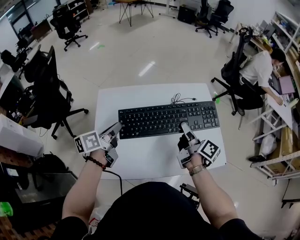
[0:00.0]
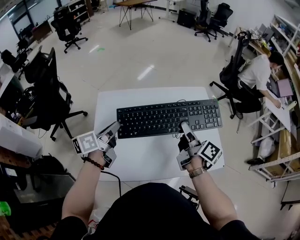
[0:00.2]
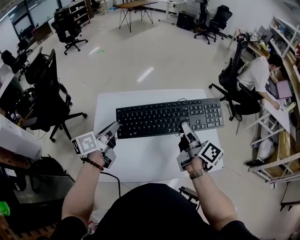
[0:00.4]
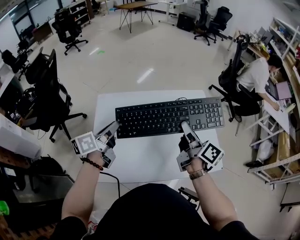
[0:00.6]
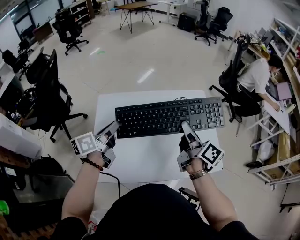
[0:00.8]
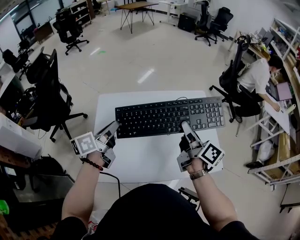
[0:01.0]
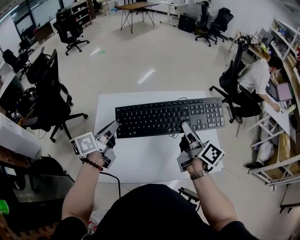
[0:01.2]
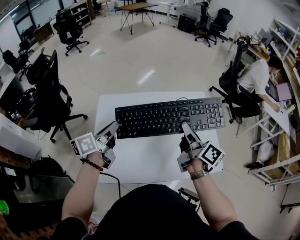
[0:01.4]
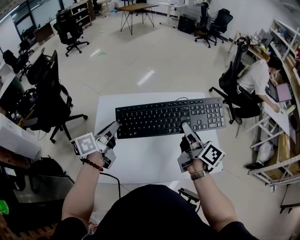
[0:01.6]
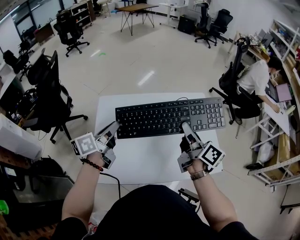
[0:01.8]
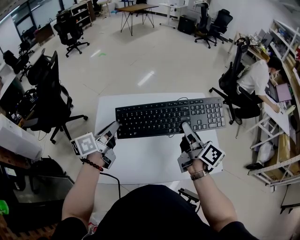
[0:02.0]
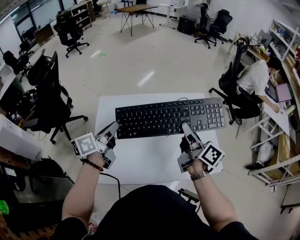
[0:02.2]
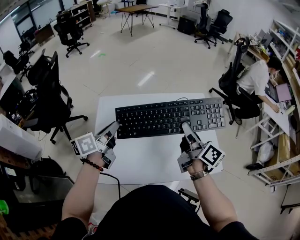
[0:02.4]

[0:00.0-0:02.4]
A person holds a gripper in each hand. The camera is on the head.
0:00.0 to 0:01.2: The right gripper goes about 10 cm upward.
0:01.2 to 0:02.4: Neither gripper changes place.

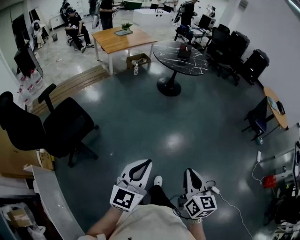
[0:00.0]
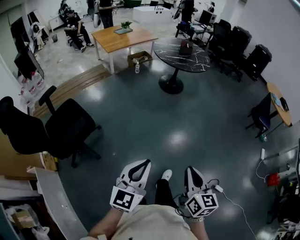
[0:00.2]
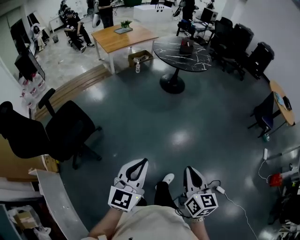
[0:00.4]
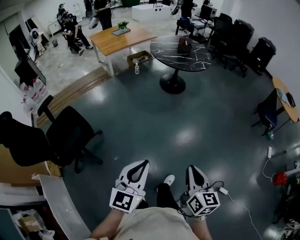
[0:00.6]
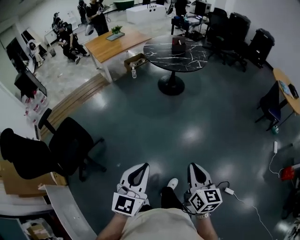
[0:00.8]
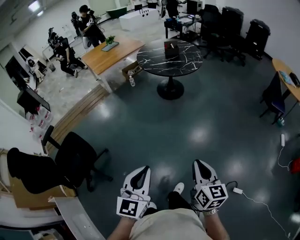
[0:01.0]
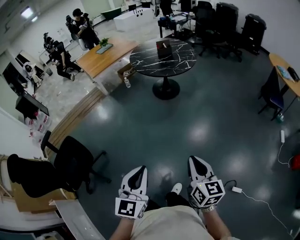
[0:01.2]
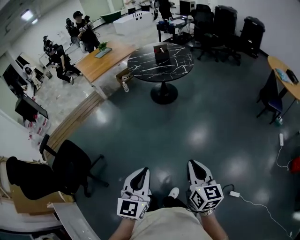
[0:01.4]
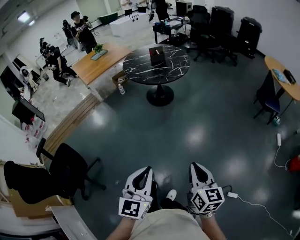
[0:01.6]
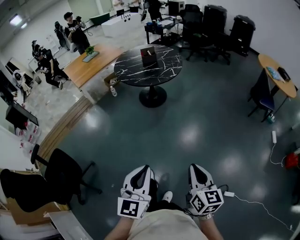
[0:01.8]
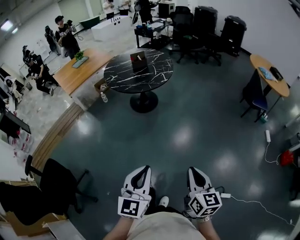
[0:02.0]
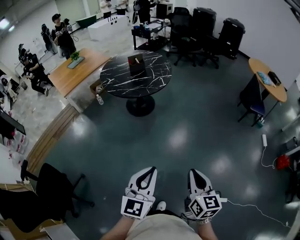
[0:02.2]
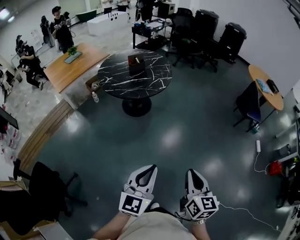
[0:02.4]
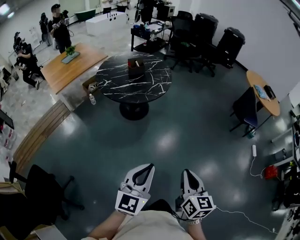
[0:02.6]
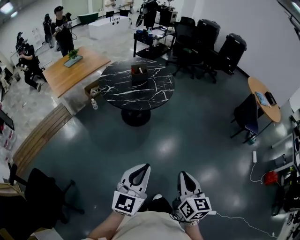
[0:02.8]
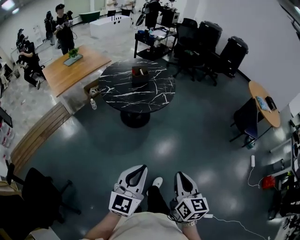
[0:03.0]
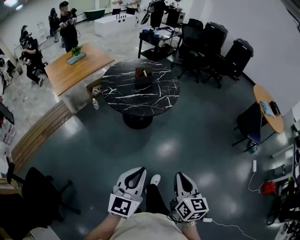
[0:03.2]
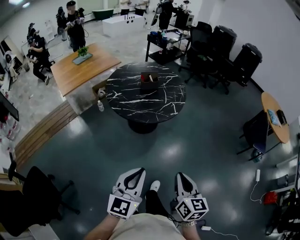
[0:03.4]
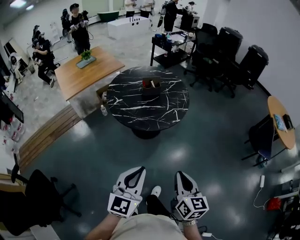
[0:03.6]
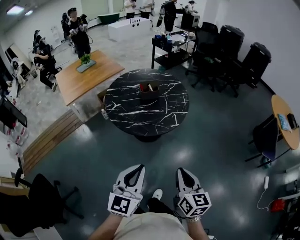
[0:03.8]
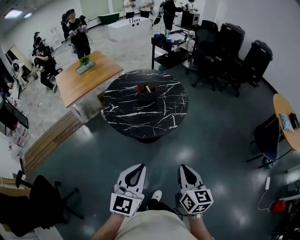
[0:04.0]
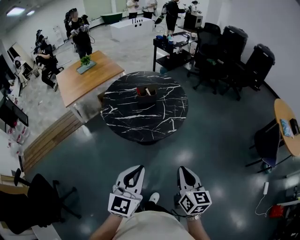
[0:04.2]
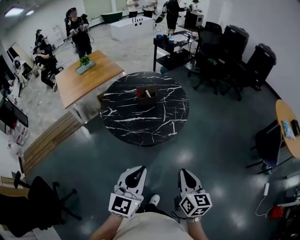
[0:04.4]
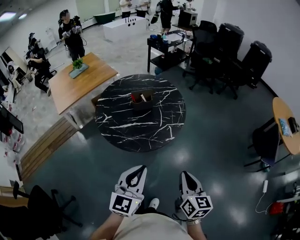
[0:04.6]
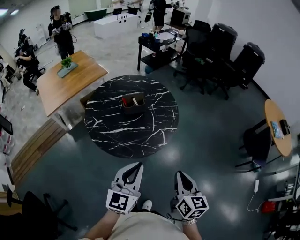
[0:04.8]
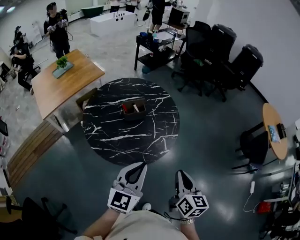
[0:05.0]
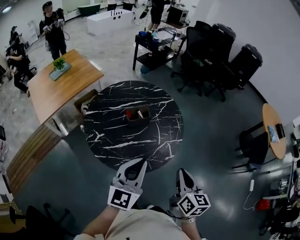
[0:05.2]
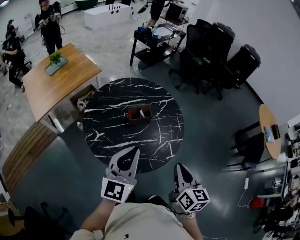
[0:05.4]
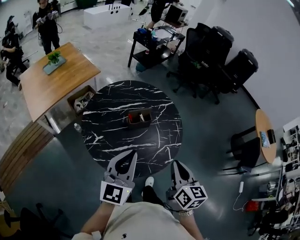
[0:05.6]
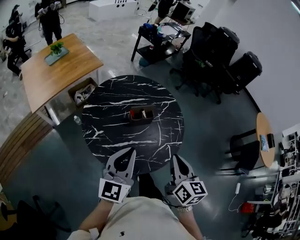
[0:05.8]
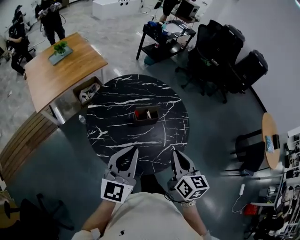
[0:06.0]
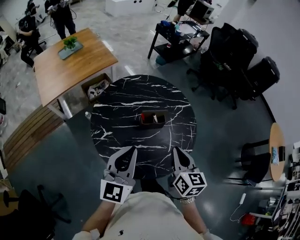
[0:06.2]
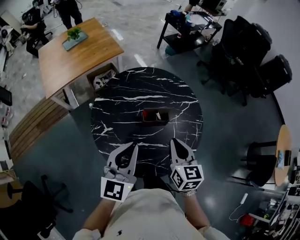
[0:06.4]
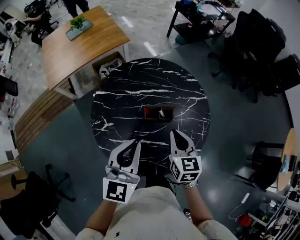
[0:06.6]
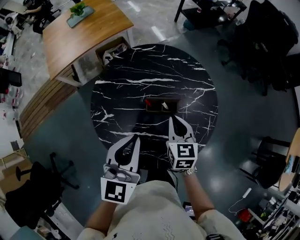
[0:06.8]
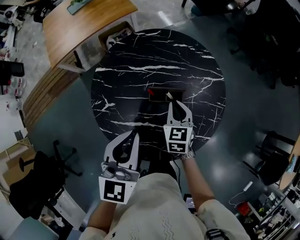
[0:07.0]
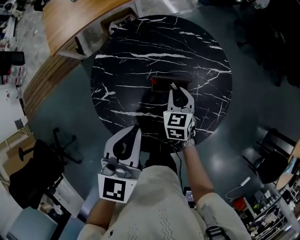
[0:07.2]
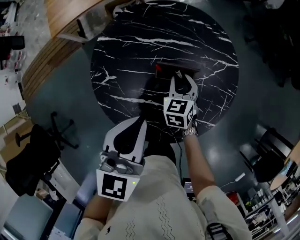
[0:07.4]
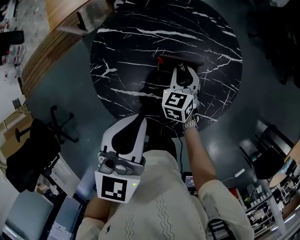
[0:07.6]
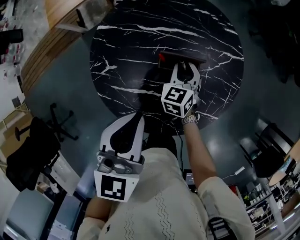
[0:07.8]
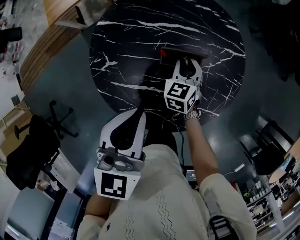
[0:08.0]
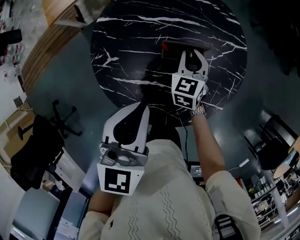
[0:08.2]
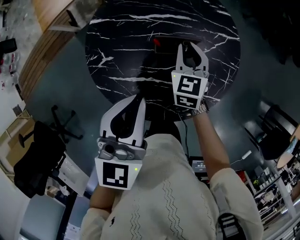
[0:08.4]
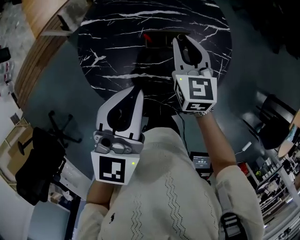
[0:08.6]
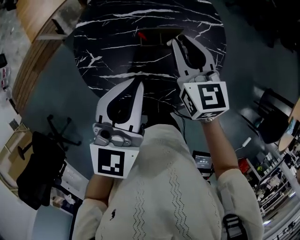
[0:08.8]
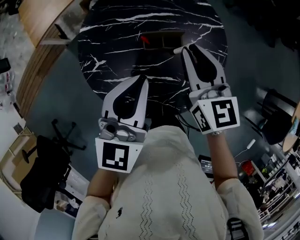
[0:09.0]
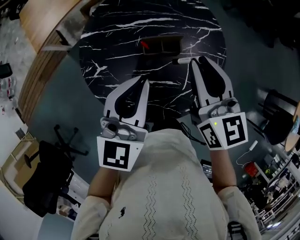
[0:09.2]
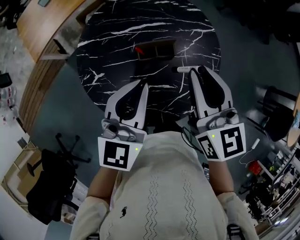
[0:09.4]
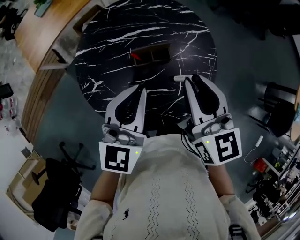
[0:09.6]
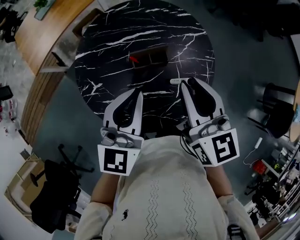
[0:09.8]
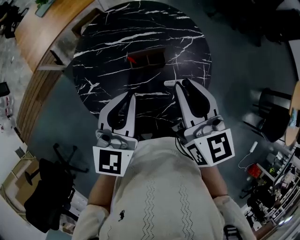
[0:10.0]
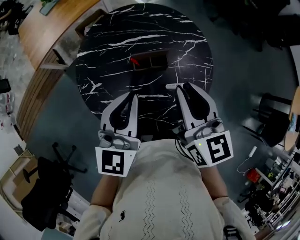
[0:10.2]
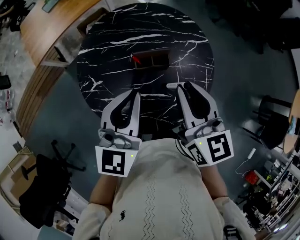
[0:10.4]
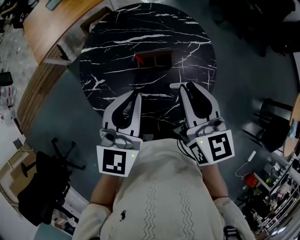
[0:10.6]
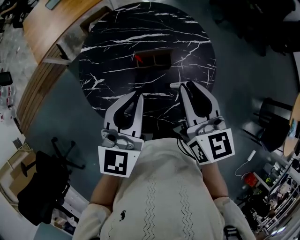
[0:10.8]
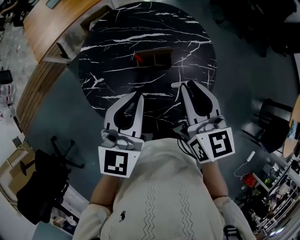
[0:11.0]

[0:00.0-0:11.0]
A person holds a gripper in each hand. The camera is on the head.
0:00.0 to 0:01.6: The grippers both shift forward and to the right by roughly 35 cm.
0:01.6 to 0:03.2: The grippers both shift forward by some 35 cm.
0:03.2 to 0:04.8: Both grippers travel together forward, about 40 cm.
0:04.8 to 0:06.2: Both grippers travel together forward and to the left, roughly 35 cm.
0:06.2 to 0:07.8: The right gripper shifts some 35 cm downward and forward, changes its angle by roughly 40 degrees, and opens its fingers; the left gripper shifts roughly 15 cm forward, downward and to the right, and swivels some 30 degrees.
0:07.8 to 0:09.4: The right gripper heads upward, covering roughly 25 cm, and rotates roughly 40 degrees.
0:09.4 to 0:11.0: The grippers stay close to where they were, moving slightly.

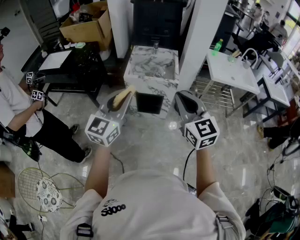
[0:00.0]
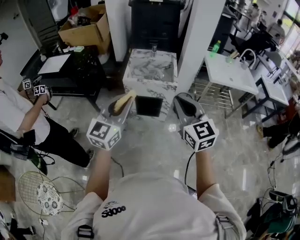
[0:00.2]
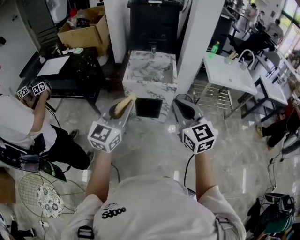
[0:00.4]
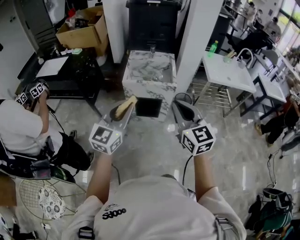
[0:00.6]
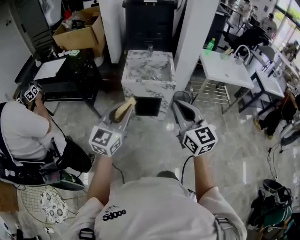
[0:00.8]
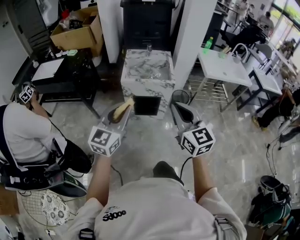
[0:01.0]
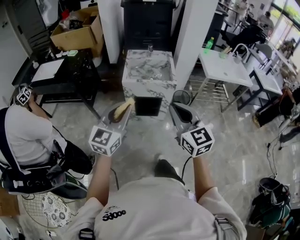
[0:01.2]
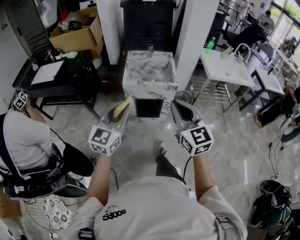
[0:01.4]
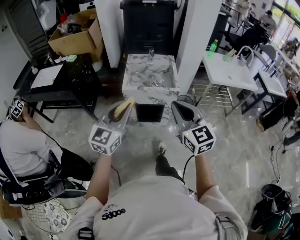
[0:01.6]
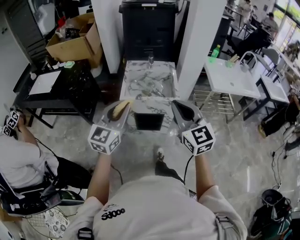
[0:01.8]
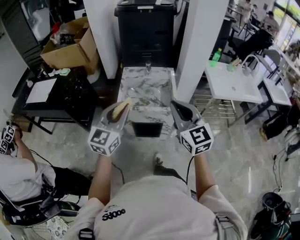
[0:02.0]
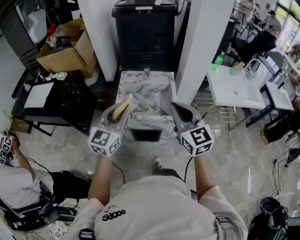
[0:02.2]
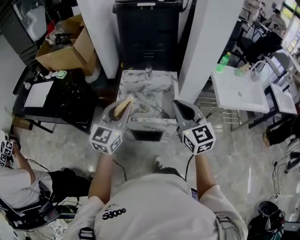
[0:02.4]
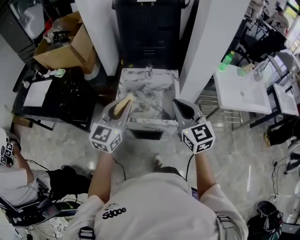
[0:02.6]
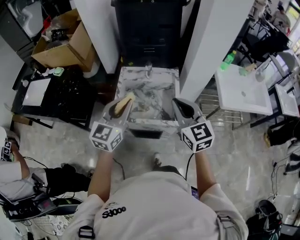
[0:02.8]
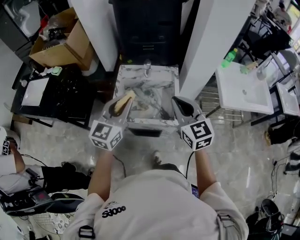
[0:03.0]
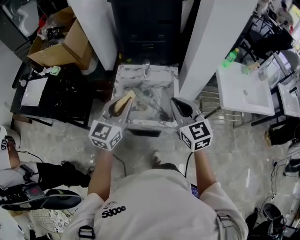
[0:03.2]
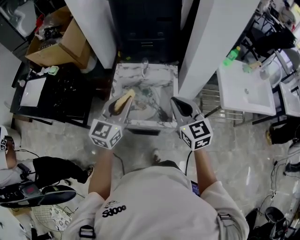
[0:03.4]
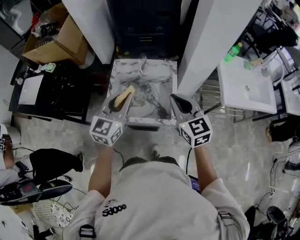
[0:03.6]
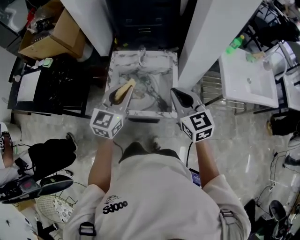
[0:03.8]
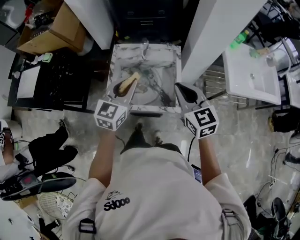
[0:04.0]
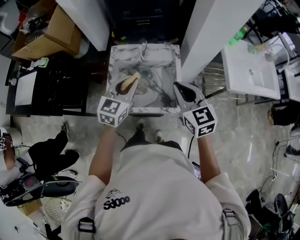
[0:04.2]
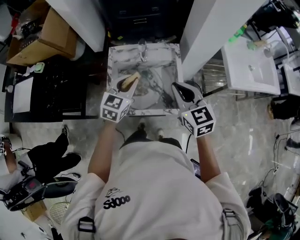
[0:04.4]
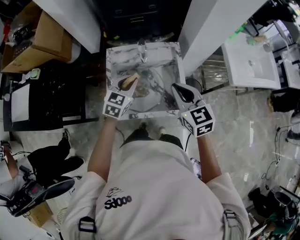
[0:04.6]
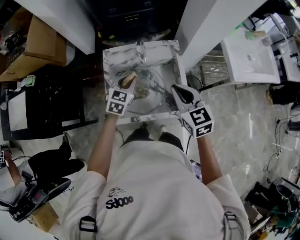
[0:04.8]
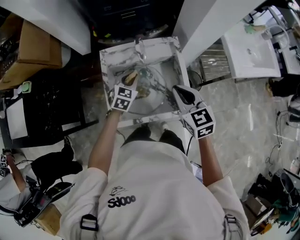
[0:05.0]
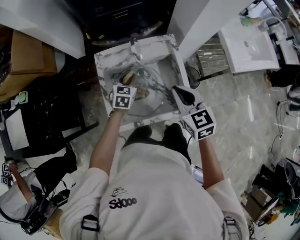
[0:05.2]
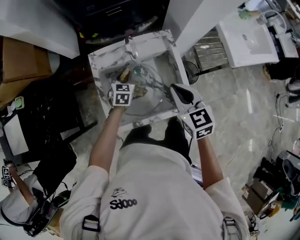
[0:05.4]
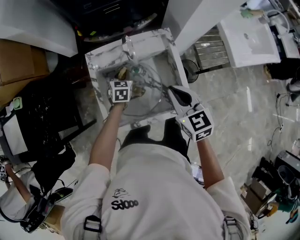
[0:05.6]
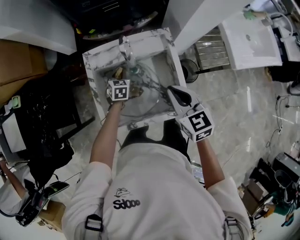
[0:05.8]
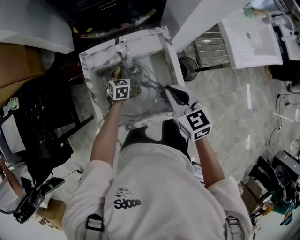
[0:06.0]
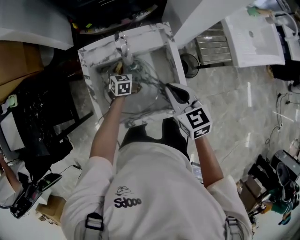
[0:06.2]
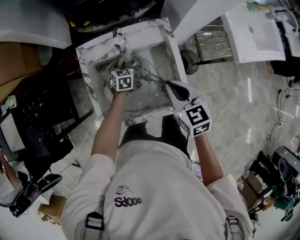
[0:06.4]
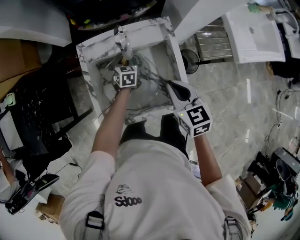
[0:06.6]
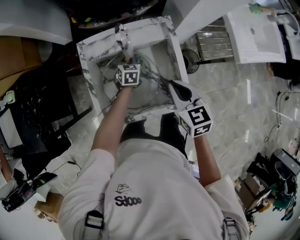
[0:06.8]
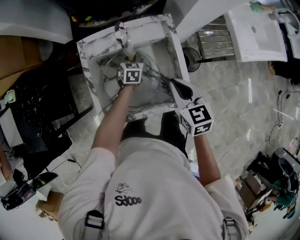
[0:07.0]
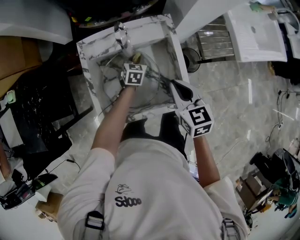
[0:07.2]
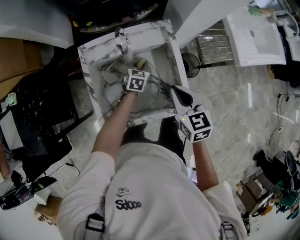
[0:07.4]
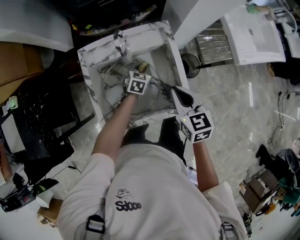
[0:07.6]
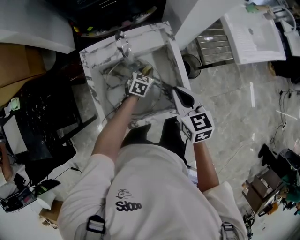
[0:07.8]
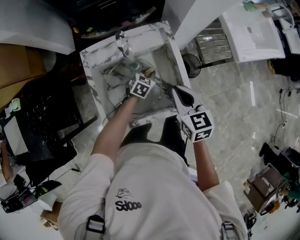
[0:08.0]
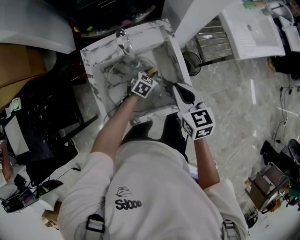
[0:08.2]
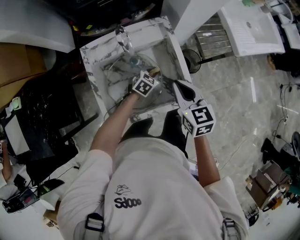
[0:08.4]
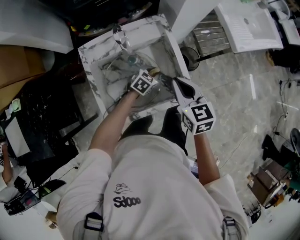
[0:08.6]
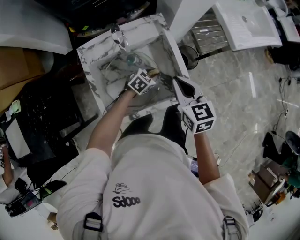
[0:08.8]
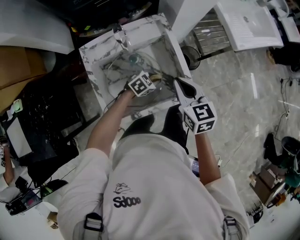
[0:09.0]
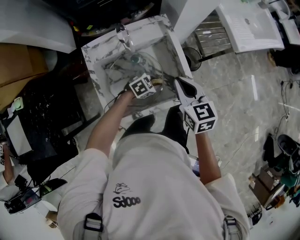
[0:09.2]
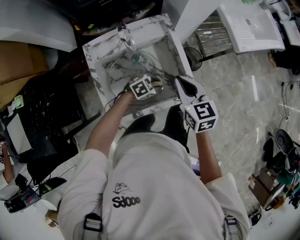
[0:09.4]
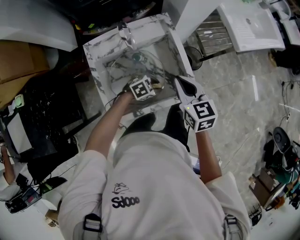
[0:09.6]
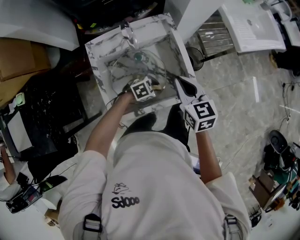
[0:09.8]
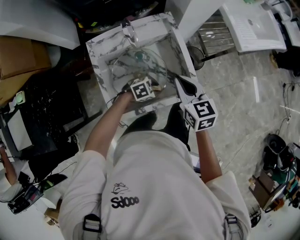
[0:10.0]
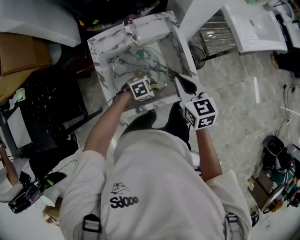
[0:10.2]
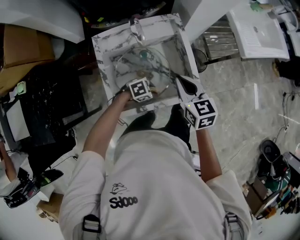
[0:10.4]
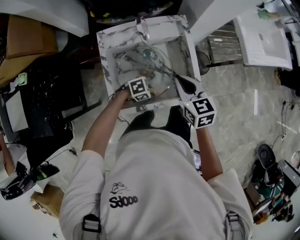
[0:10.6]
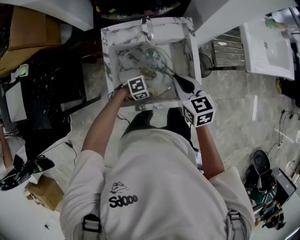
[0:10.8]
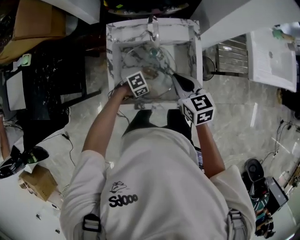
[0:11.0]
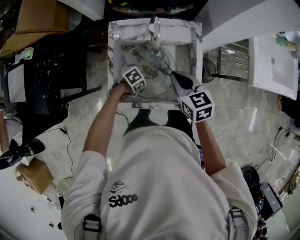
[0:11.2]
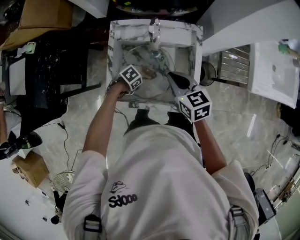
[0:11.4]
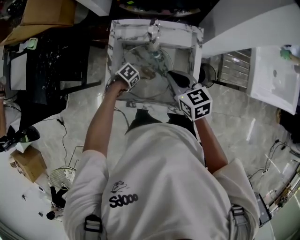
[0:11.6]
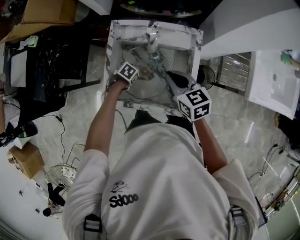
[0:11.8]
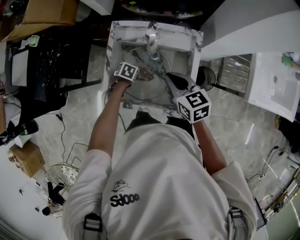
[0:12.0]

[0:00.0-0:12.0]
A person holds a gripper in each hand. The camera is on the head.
0:00.0 to 0:01.6: The grippers both shift forward and to the left by roughly 10 cm.
0:01.6 to 0:03.0: Both grippers travel together forward, about 35 cm.
0:03.0 to 0:04.4: The right gripper moves forward and downward, about 10 cm, while the left gripper heads downward and forward, covering some 20 cm, and rotates about 20 degrees.
0:04.4 to 0:06.0: The right gripper is displaced downward and forward by some 15 cm. The left gripper is displaced downward and forward by about 35 cm, and changes its angle by about 30 degrees.
0:06.0 to 0:07.6: The left gripper travels to the right by approximately 15 cm, and changes its angle by approximately 20 degrees.
0:07.6 to 0:09.0: The left gripper changes place by roughly 15 cm, and changes its angle by about 40 degrees.
0:09.0 to 0:10.4: The left gripper ends up approximately 10 cm from where it was.
0:10.4 to 0:12.0: The right gripper changes place by approximately 10 cm, and changes its angle by roughly 30 degrees. Meanwhile the left gripper moves approximately 20 cm, and rotates around the line of its fingers by approximately 70 degrees, counterclockwise from behind.
